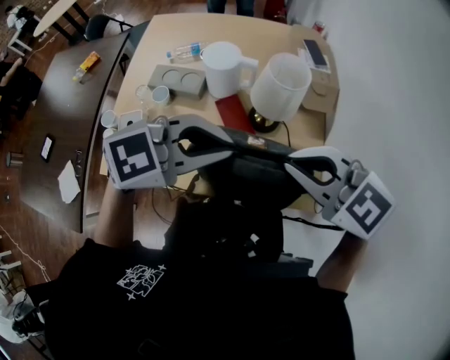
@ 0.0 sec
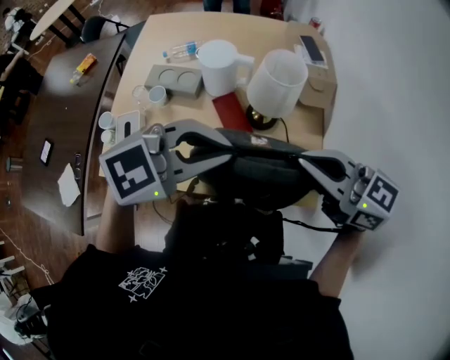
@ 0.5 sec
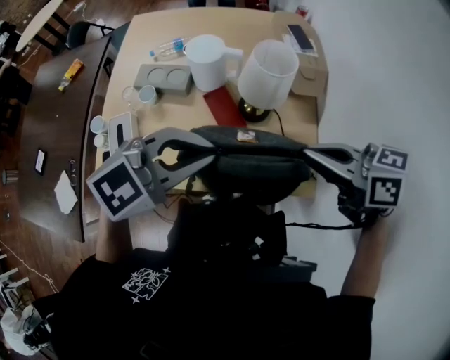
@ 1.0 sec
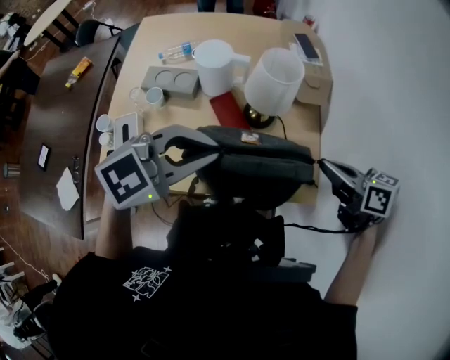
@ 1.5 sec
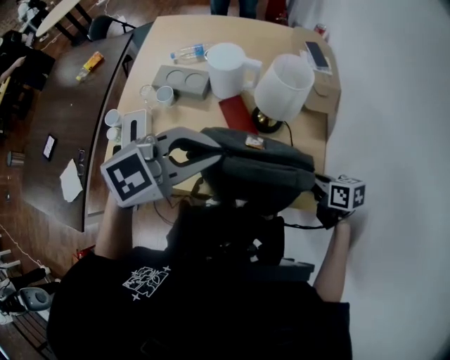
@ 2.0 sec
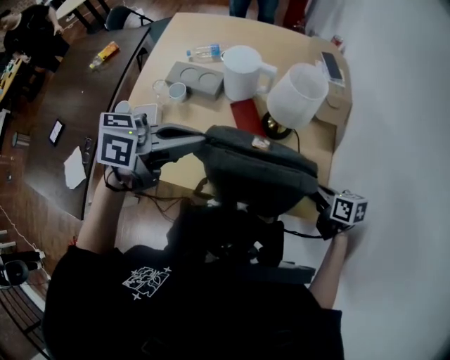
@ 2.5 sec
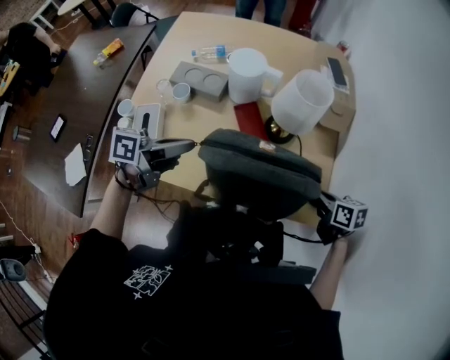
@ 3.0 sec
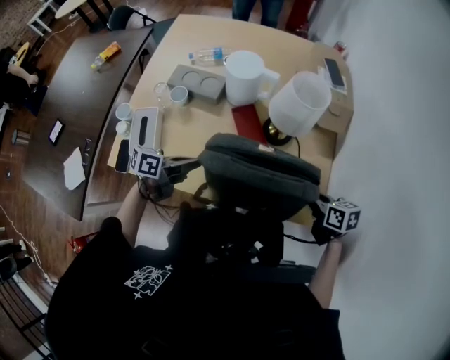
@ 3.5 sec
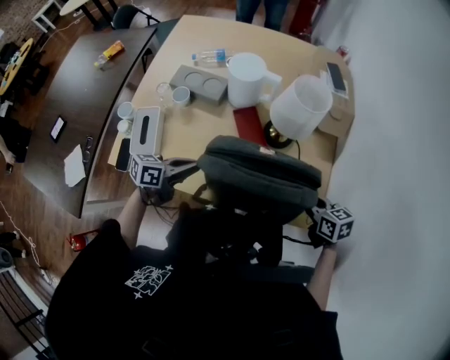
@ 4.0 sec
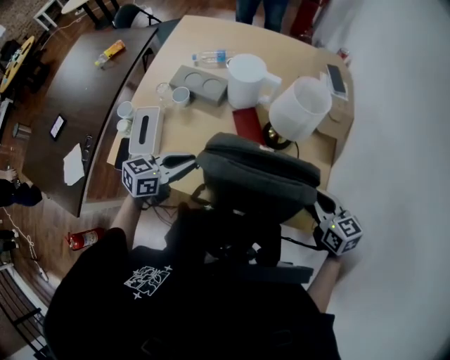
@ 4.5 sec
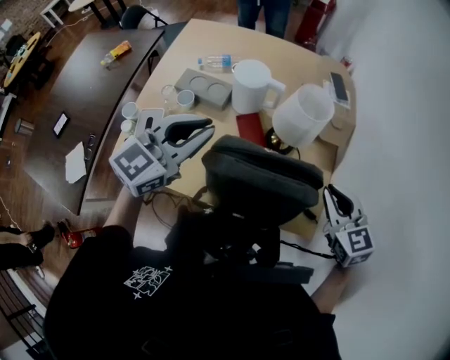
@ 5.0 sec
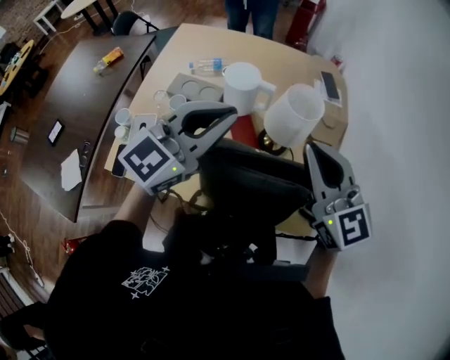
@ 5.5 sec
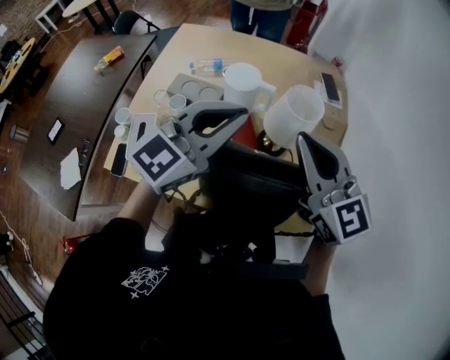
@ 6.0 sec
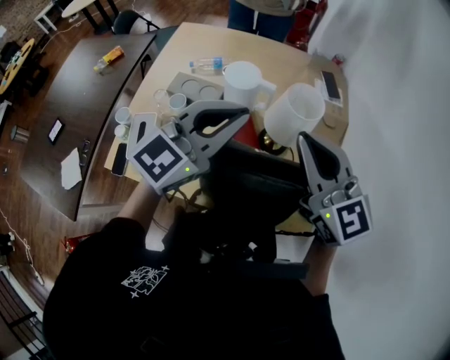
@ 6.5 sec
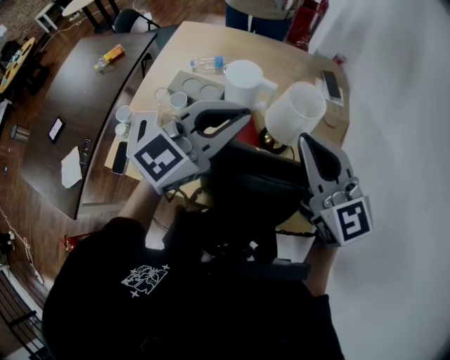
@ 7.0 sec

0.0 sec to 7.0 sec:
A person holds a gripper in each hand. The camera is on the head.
0.0 sec to 2.0 sec: The right gripper heads downward, covering approximately 25 cm, and rolls clockwise, seen from behind, by some 60 degrees.
2.0 sec to 3.5 sec: The left gripper is displaced downward and to the left by some 25 cm, and rolls counterclockwise, seen from behind, by about 70 degrees.
3.5 sec to 5.0 sec: The grippers both shift upward by some 20 cm. The left gripper rolls clockwise, seen from behind, by about 60 degrees, while the right gripper rolls counterclockwise, seen from behind, by roughly 40 degrees.
5.0 sec to 7.0 sec: The right gripper moves upward and to the left, approximately 20 cm, and swivels roughly 30 degrees. Meanwhile the left gripper travels to the right and upward by approximately 10 cm.

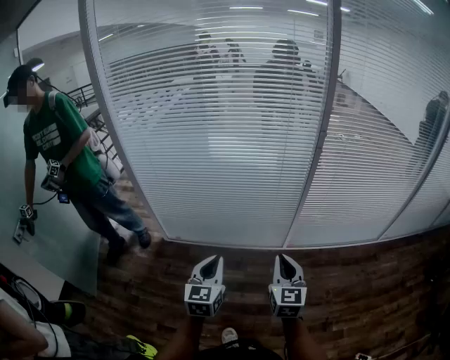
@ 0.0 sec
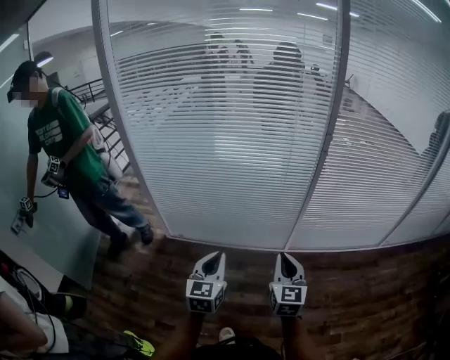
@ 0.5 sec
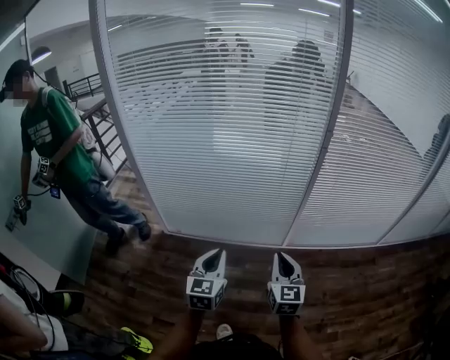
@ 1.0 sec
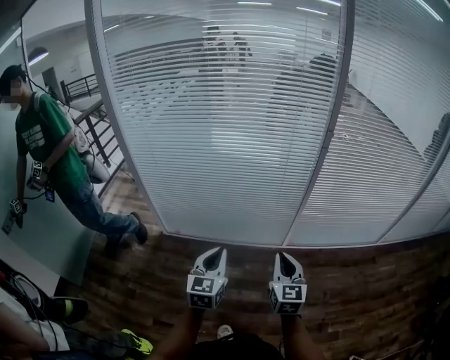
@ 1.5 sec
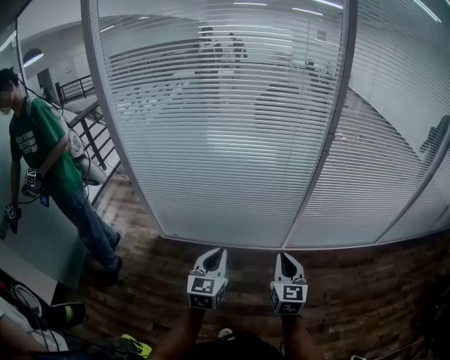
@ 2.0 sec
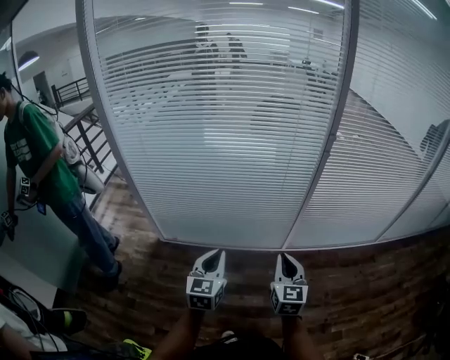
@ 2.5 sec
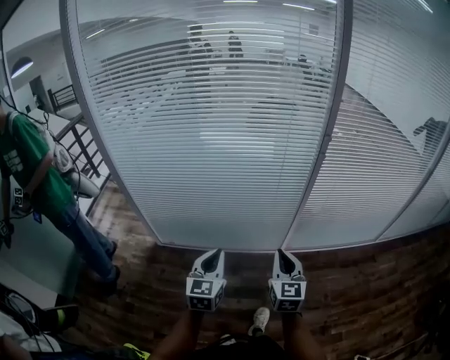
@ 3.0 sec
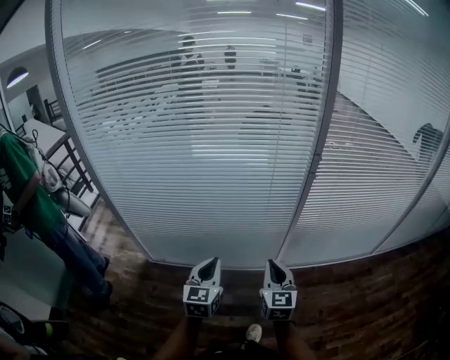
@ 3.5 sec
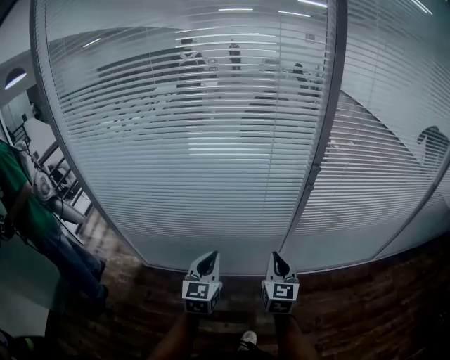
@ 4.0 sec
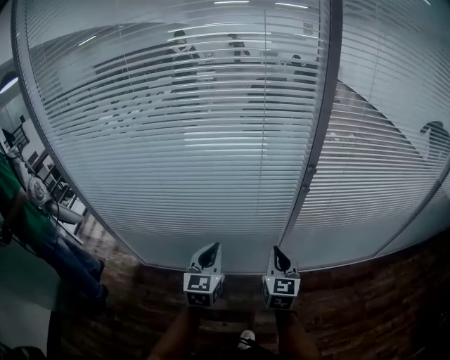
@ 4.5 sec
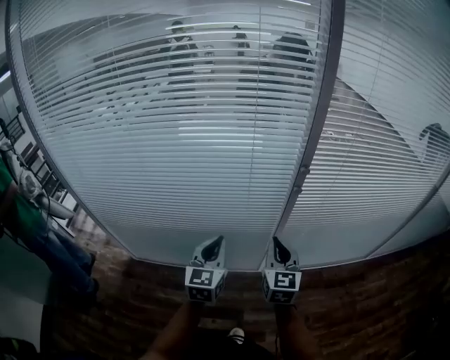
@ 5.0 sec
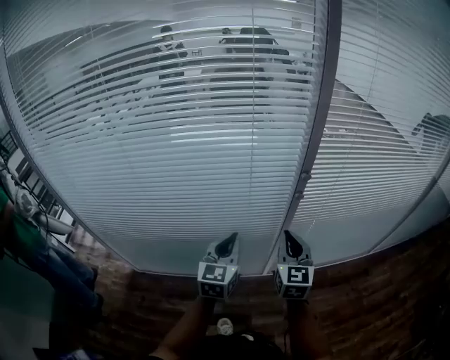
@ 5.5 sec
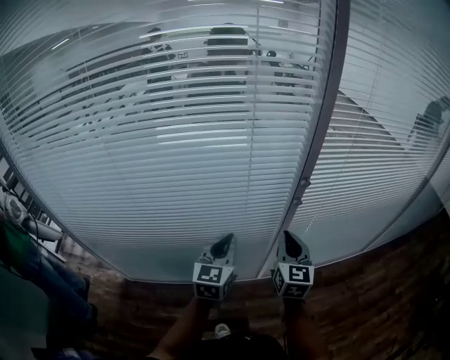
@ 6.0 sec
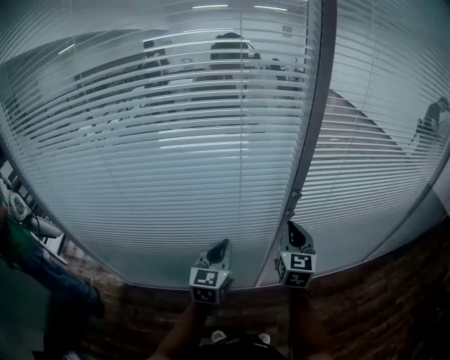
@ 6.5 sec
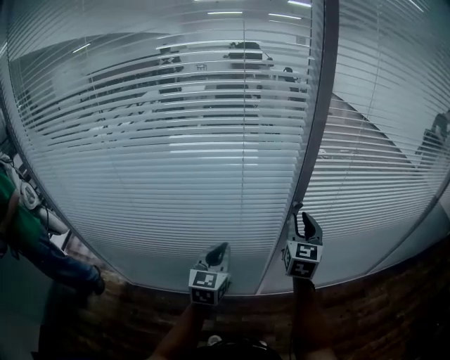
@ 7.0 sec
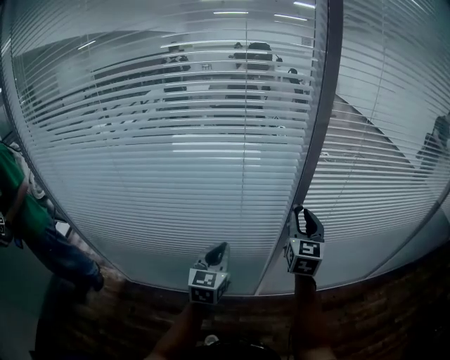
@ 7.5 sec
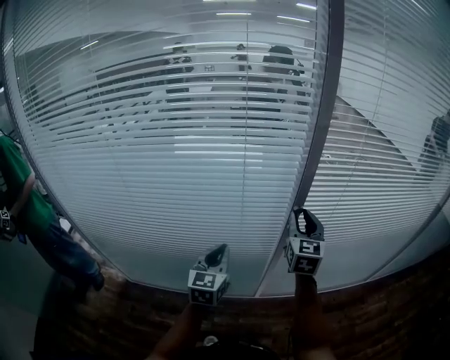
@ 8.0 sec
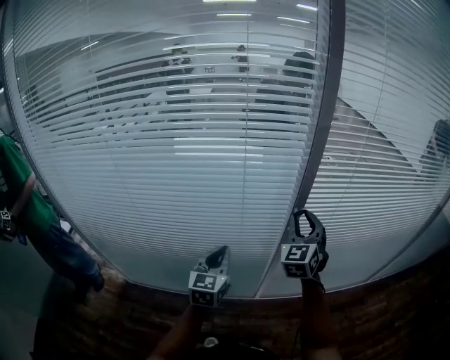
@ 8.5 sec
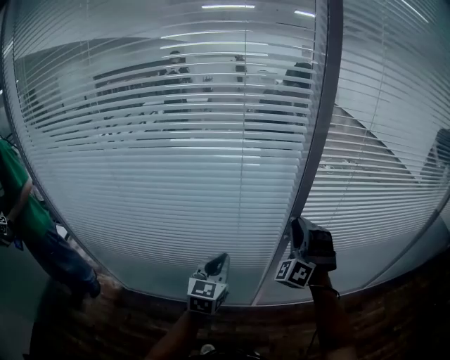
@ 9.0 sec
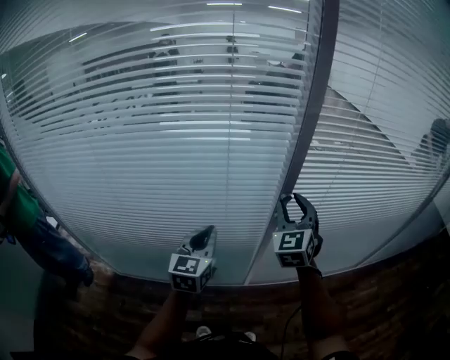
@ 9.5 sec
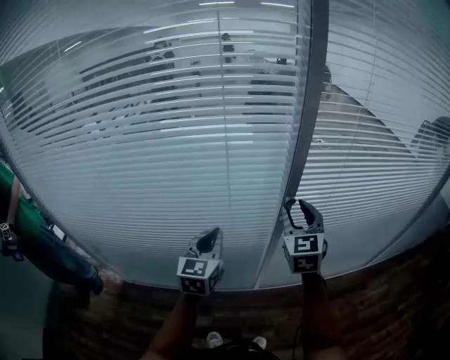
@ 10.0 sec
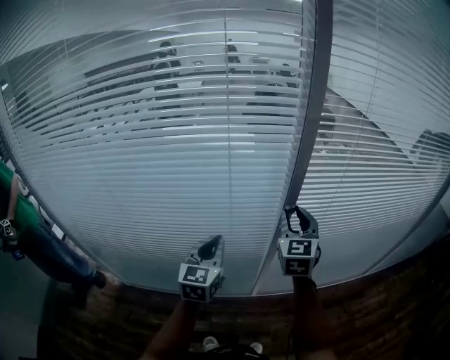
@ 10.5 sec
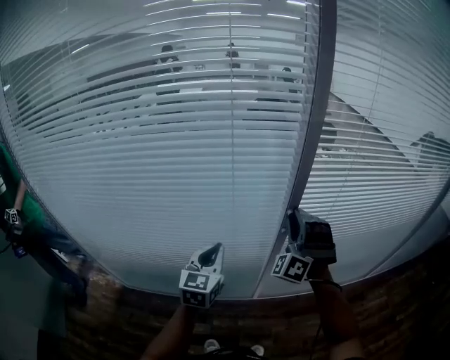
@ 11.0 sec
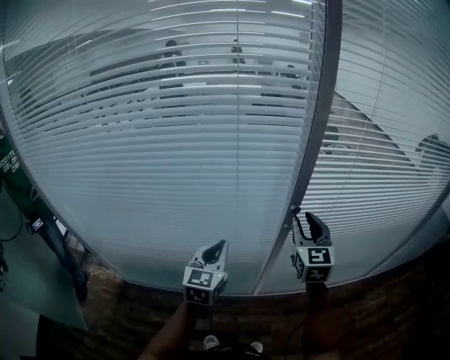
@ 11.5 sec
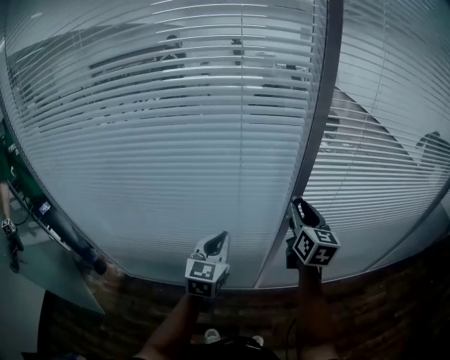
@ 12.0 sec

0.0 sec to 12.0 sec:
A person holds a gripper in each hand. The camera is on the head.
0.0 sec to 2.0 sec: The grippers stay close to where they were, moving slightly.
2.0 sec to 4.0 sec: Both grippers move forward, roughly 15 cm.
4.0 sec to 6.0 sec: The grippers both shift forward and to the right by roughly 15 cm.
6.0 sec to 8.0 sec: The right gripper moves forward, upward and to the right, approximately 15 cm, and opens its fingers.
8.0 sec to 10.0 sec: The left gripper moves approximately 5 cm.
10.0 sec to 12.0 sec: The right gripper changes its angle by some 30 degrees.

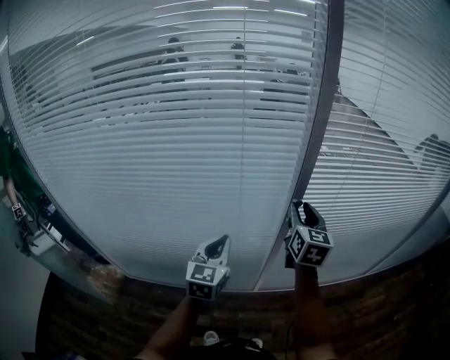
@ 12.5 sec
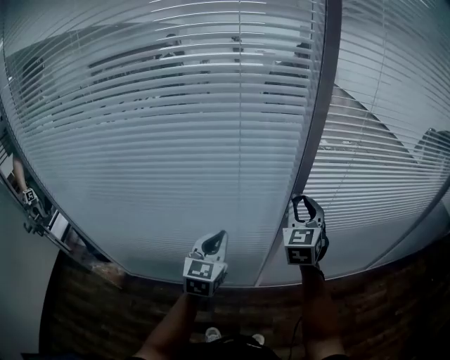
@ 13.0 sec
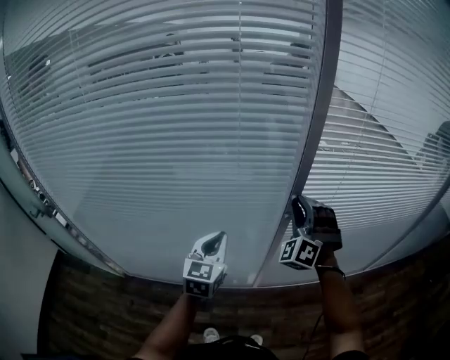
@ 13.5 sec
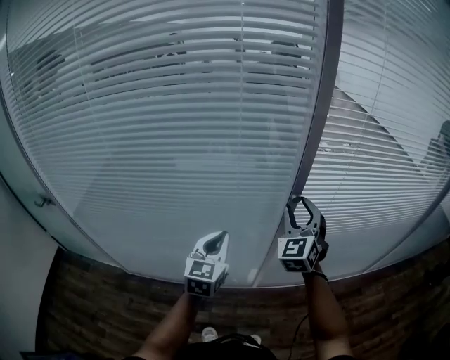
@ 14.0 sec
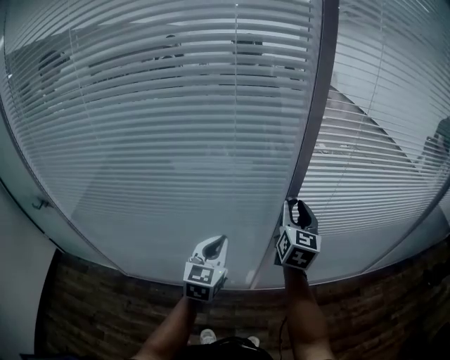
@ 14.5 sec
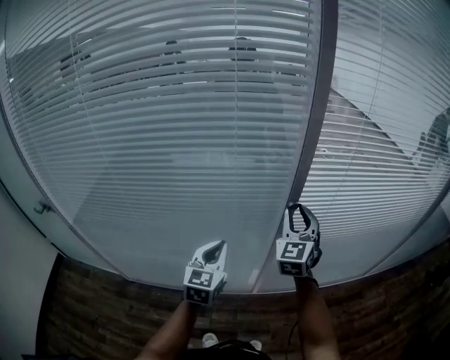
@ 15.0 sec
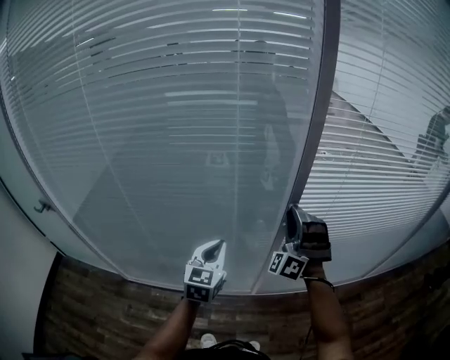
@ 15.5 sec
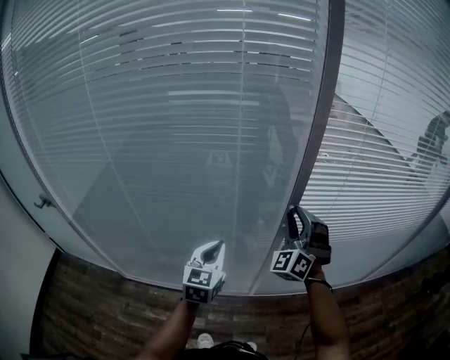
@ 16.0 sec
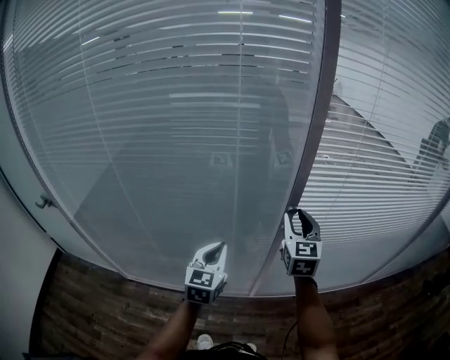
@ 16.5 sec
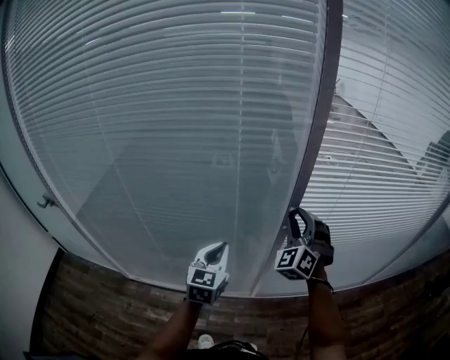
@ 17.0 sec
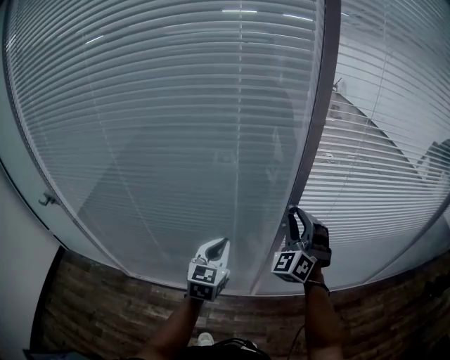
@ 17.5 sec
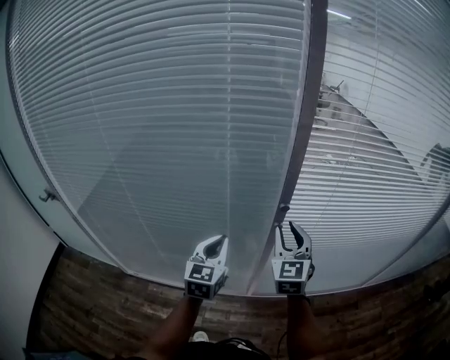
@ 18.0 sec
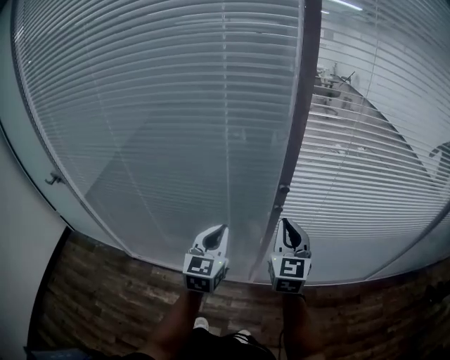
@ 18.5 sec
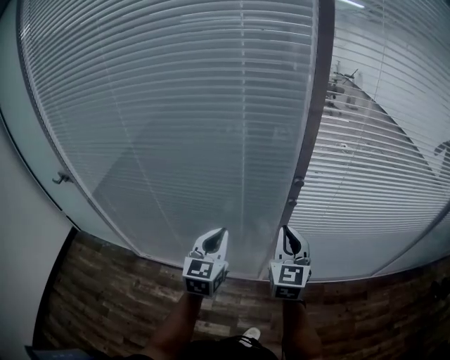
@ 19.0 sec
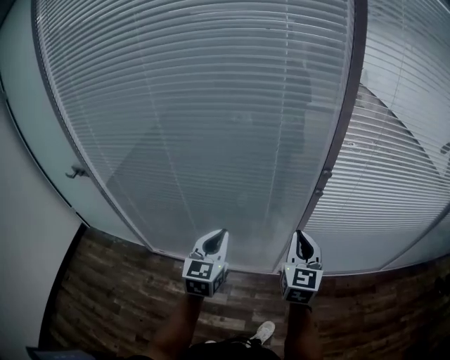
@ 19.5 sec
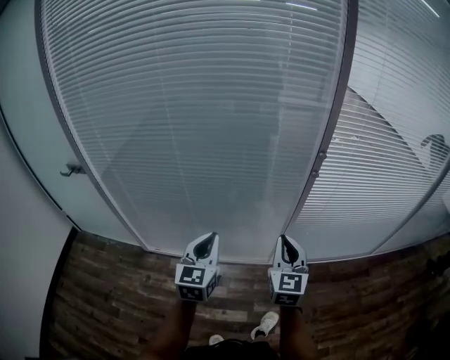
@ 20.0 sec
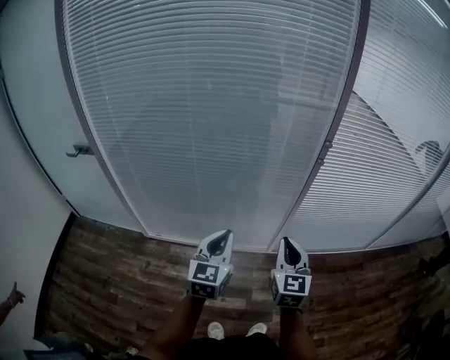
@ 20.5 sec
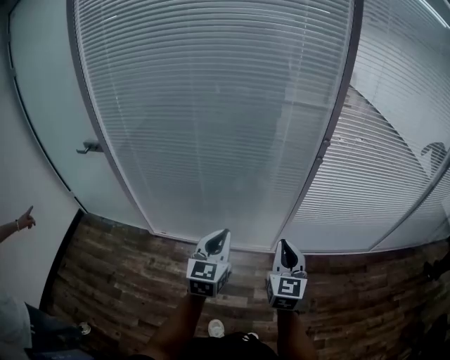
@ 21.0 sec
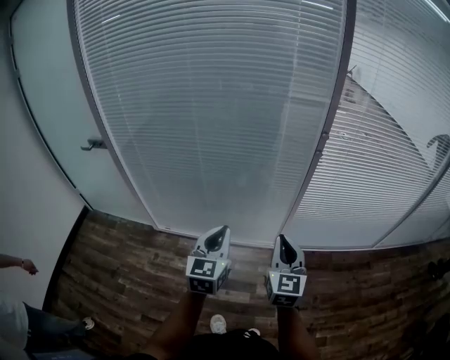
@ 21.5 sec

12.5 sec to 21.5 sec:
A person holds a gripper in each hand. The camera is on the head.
14.5 sec to 17.0 sec: The right gripper rotates around the line of its fingers by some 70 degrees, counterclockwise from behind.
17.0 sec to 19.5 sec: The left gripper goes about 15 cm backward and to the left, while the right gripper shifts some 20 cm backward, twists roughly 50 degrees clockwise, seen from behind, and closes up.
19.5 sec to 21.5 sec: The two grippers go some 20 cm backward.
